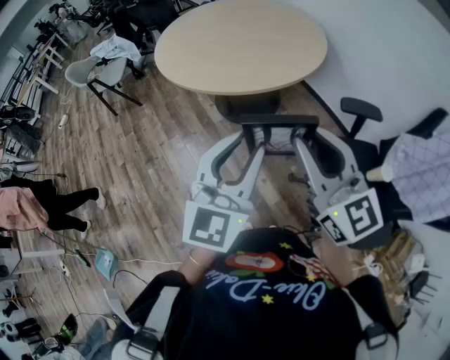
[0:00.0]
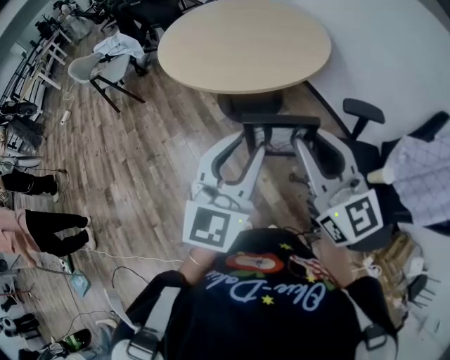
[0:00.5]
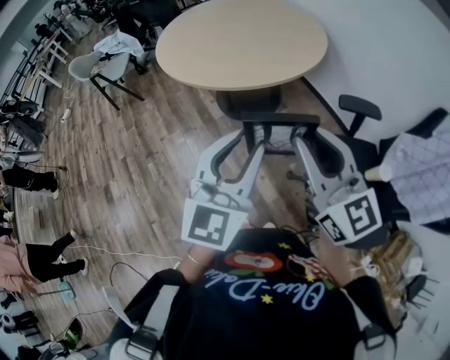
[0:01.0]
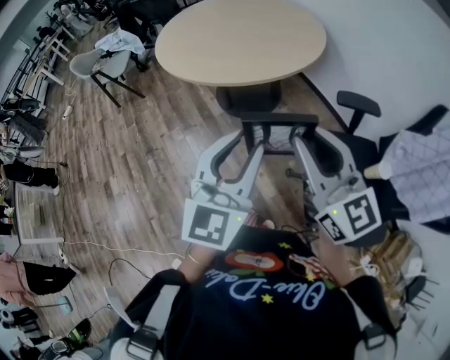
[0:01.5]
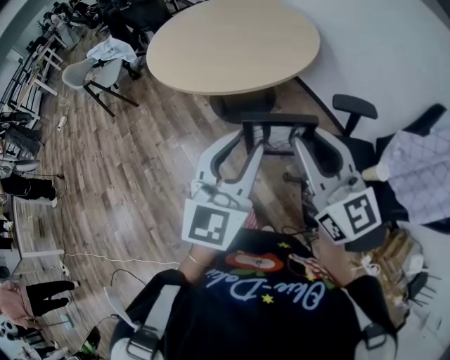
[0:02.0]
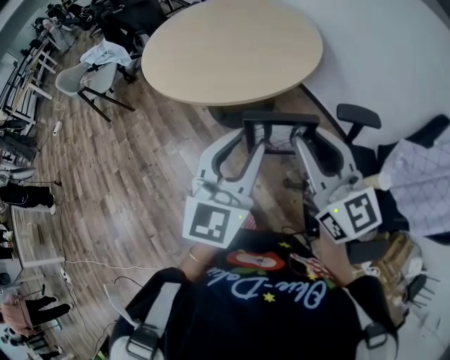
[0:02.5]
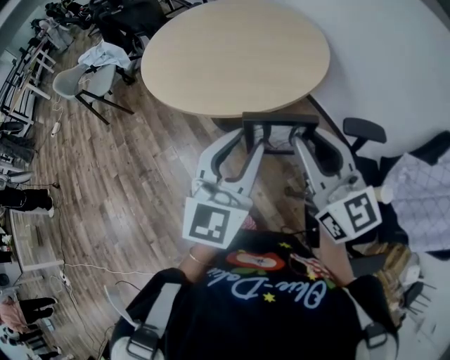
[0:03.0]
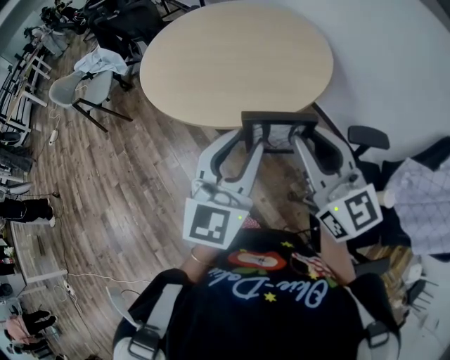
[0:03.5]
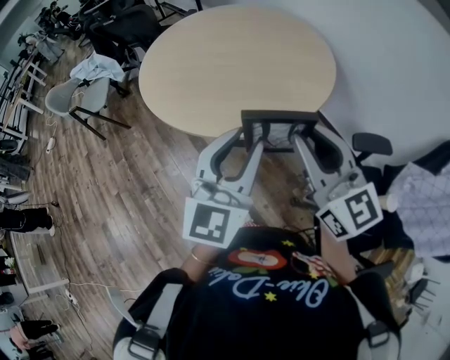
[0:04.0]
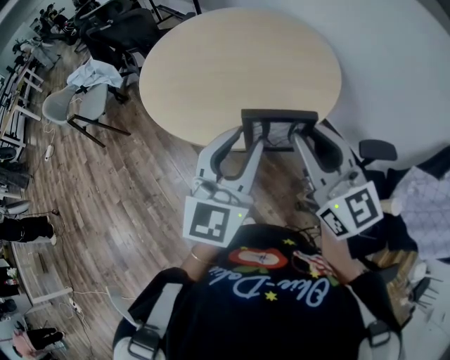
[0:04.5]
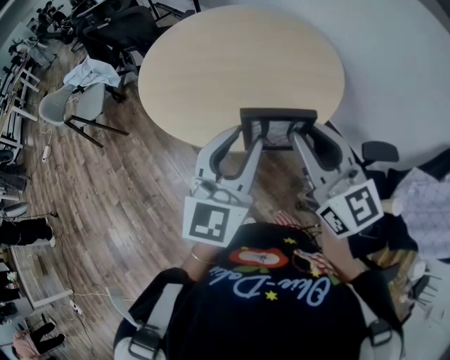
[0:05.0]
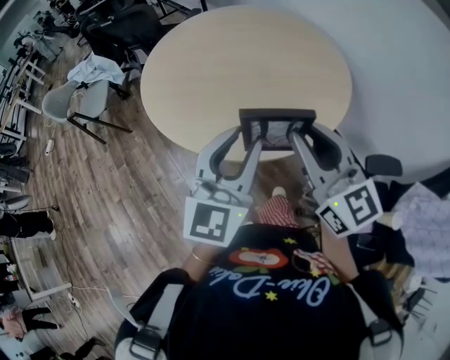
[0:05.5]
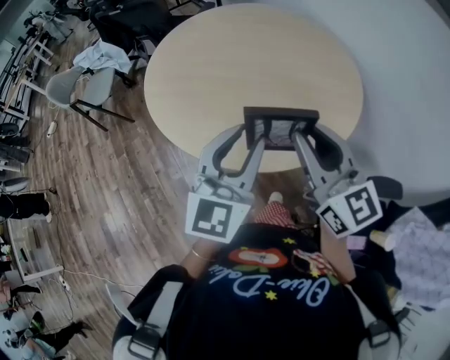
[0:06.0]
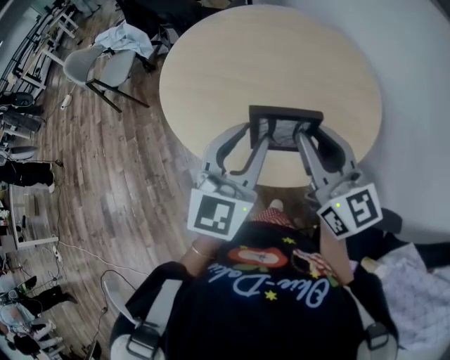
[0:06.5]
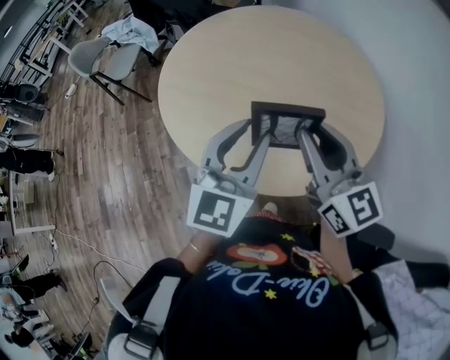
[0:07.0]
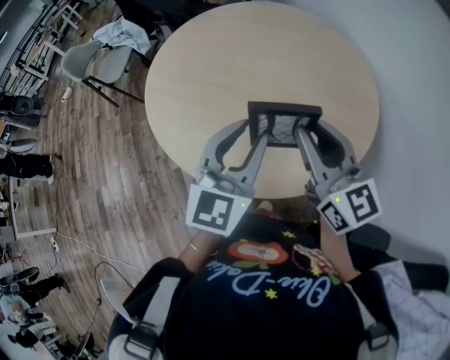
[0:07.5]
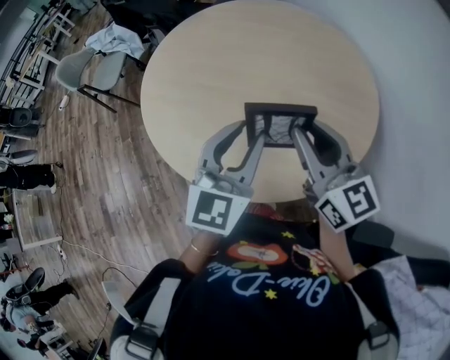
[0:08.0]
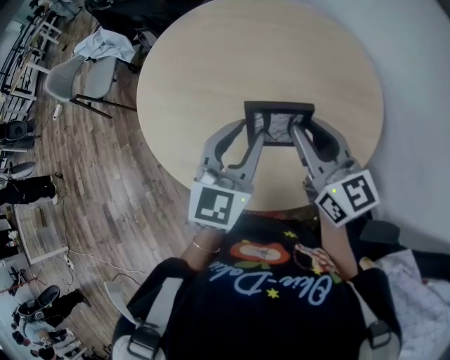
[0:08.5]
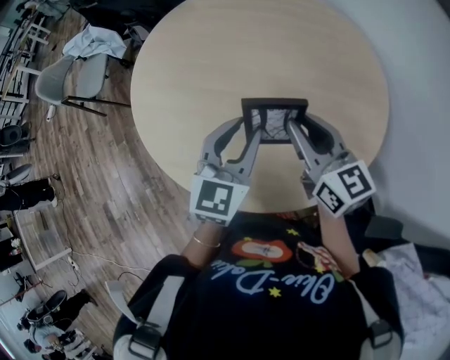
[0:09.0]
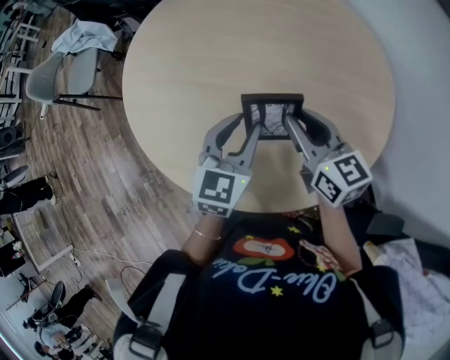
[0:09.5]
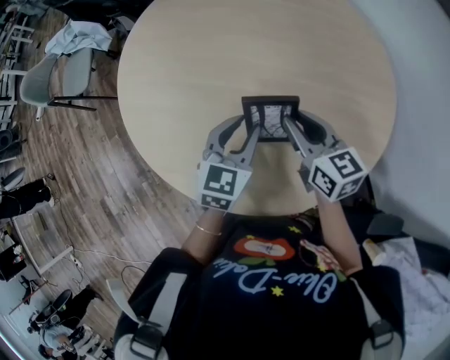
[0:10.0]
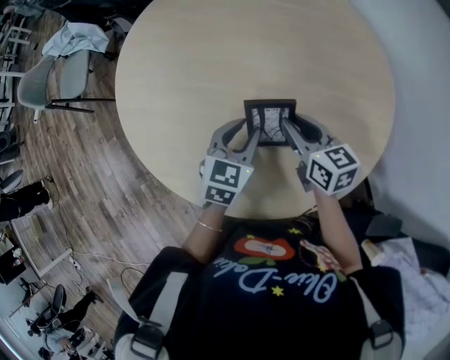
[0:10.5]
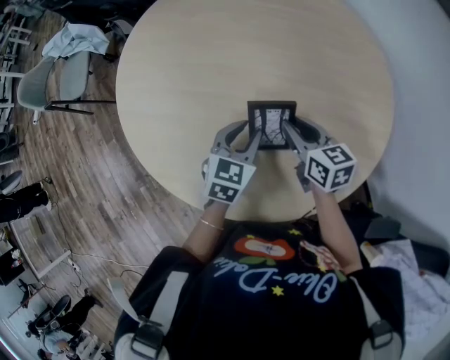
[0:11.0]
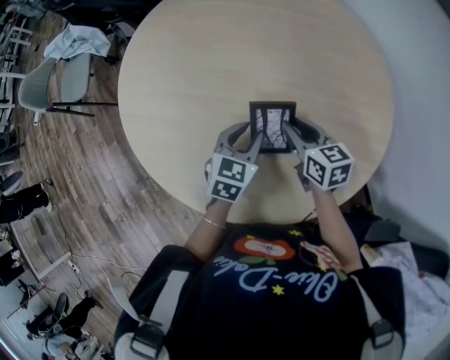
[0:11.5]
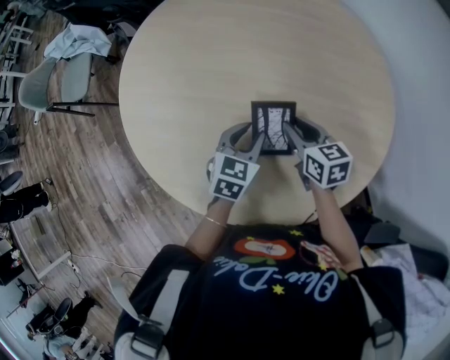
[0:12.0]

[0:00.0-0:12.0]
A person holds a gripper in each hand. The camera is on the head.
0:00.0 to 0:02.0: There are only small adjustments of the grippers.
0:02.0 to 0:04.0: The two grippers go approximately 20 cm forward and to the left.
0:04.0 to 0:06.0: Both grippers move forward, some 15 cm.
0:06.0 to 0:08.0: Both grippers travel together forward and to the right, roughly 15 cm.
0:08.0 to 0:10.0: Both grippers travel together downward and forward, roughly 20 cm. The right gripper rotates approximately 20 degrees; the left gripper turns by roughly 20 degrees.
0:10.0 to 0:12.0: The two grippers go roughly 10 cm downward.

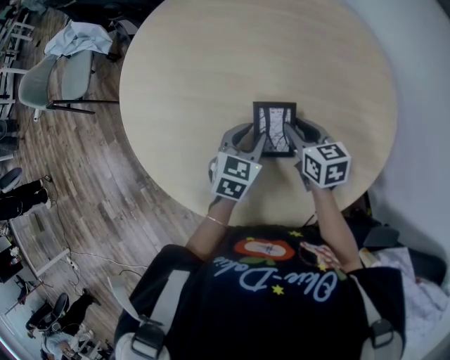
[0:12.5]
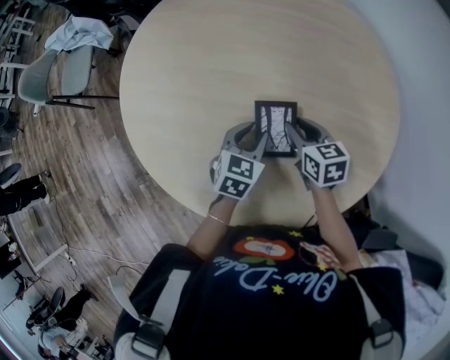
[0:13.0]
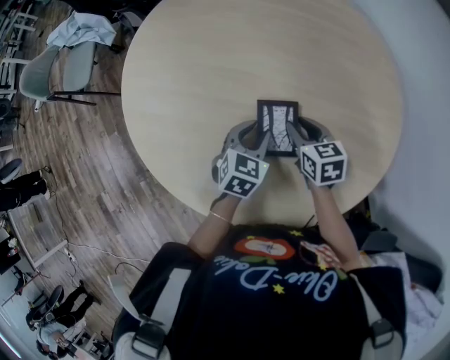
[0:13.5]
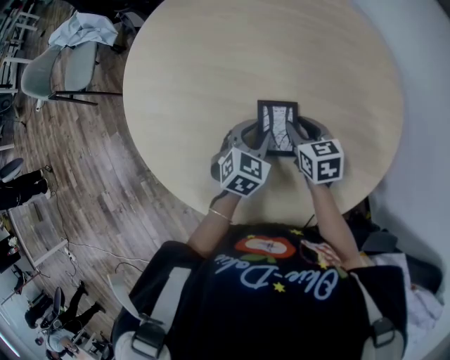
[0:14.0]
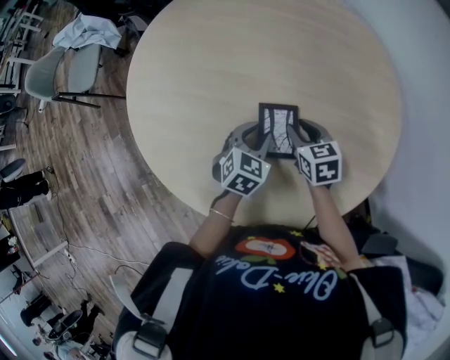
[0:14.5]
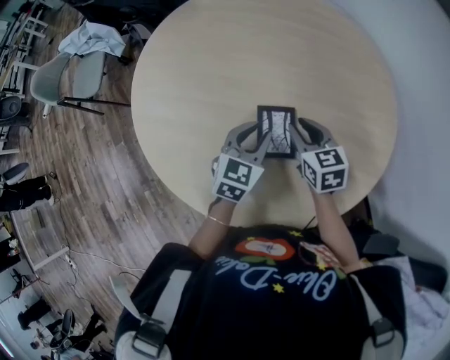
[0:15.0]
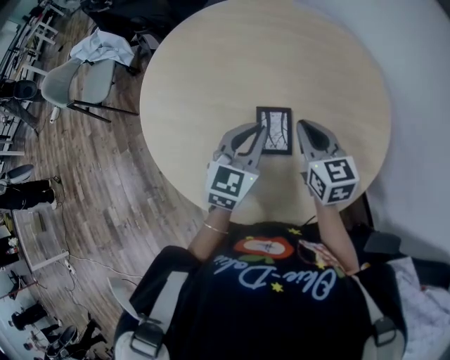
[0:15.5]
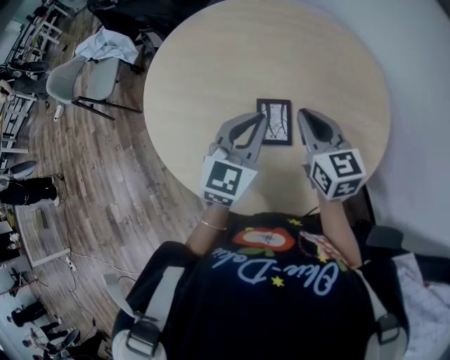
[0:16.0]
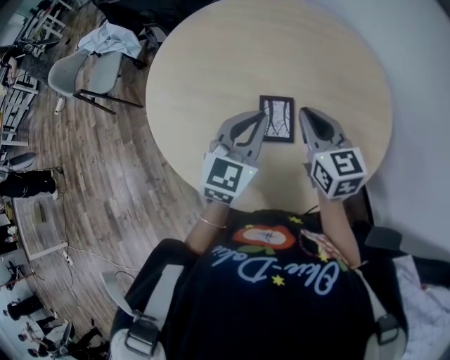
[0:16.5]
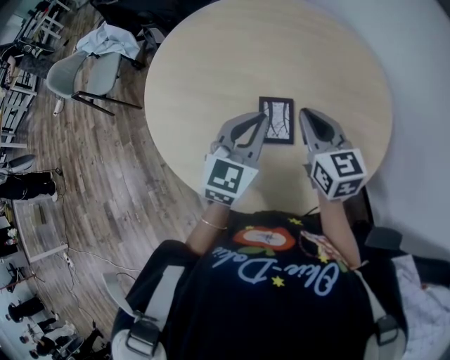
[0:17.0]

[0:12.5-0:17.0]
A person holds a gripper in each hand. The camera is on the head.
0:12.5 to 0:14.5: There are only small adjustments of the grippers.
0:14.5 to 0:17.0: Both grippers travel together upward, approximately 20 cm. The left gripper swivels some 30 degrees, and closes up, while the right gripper changes its angle by some 30 degrees, and closes up.

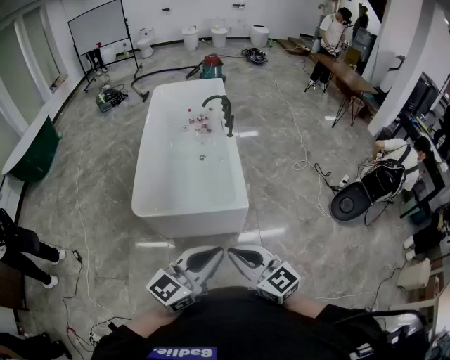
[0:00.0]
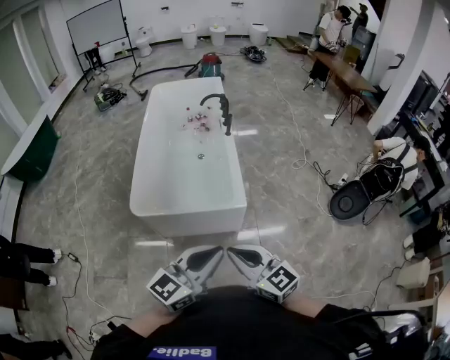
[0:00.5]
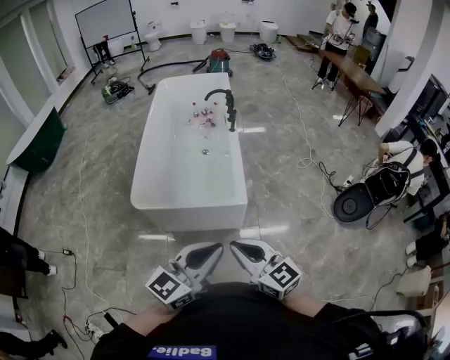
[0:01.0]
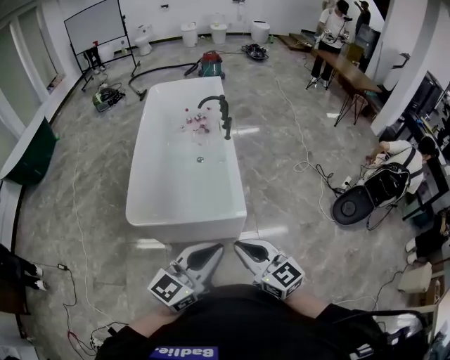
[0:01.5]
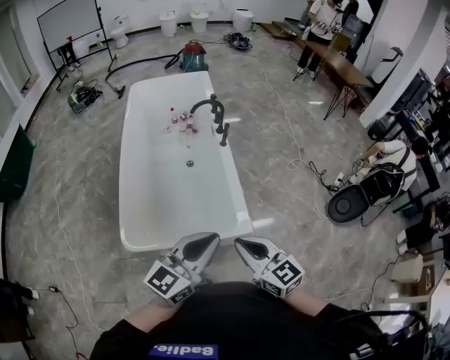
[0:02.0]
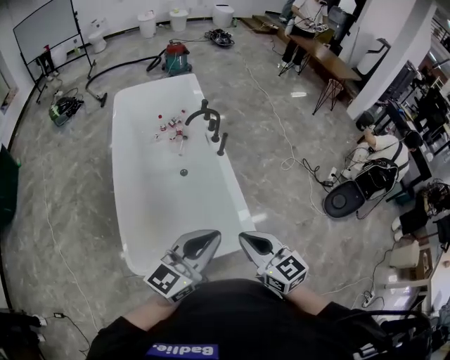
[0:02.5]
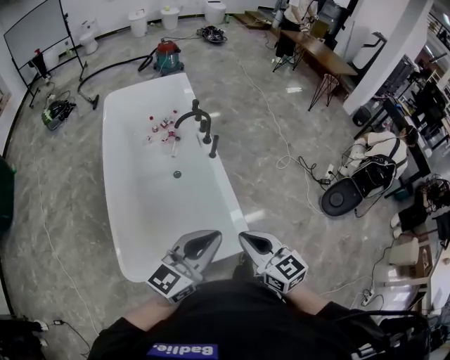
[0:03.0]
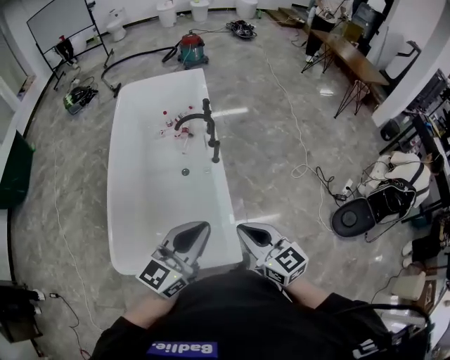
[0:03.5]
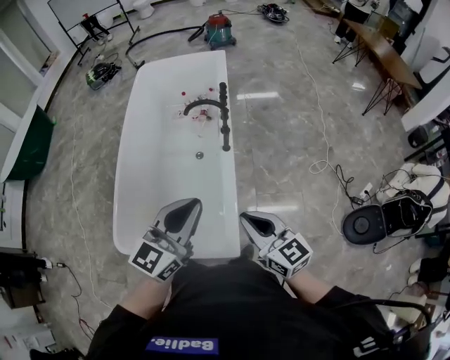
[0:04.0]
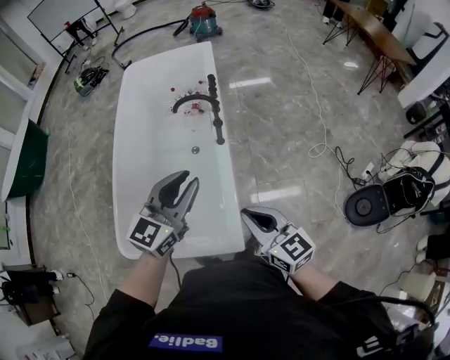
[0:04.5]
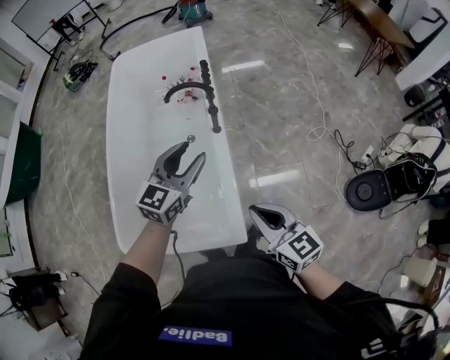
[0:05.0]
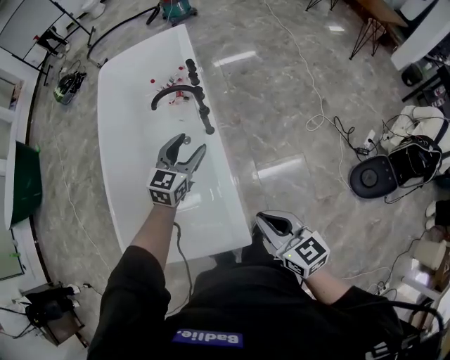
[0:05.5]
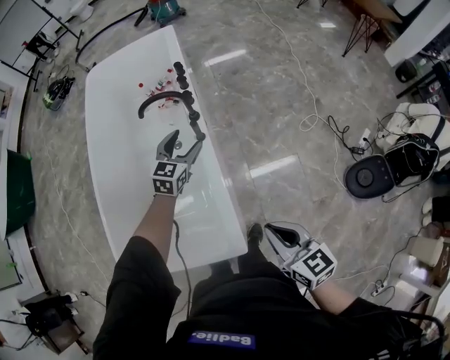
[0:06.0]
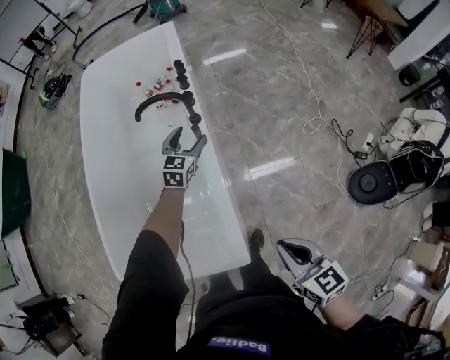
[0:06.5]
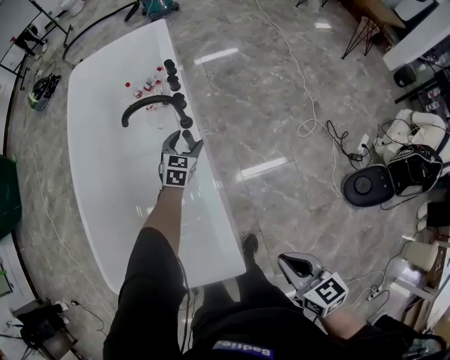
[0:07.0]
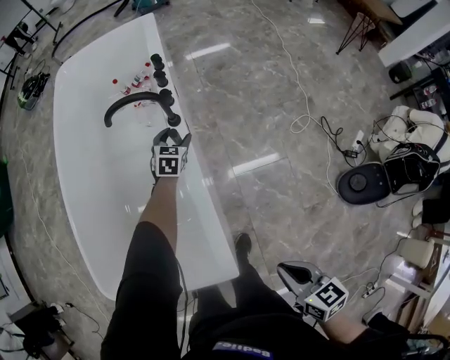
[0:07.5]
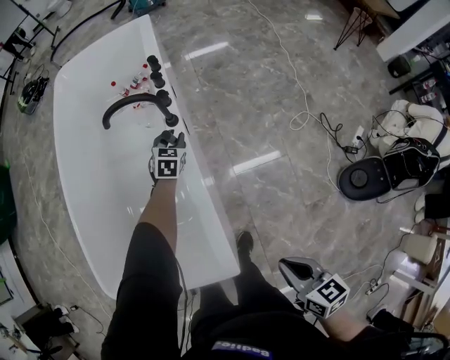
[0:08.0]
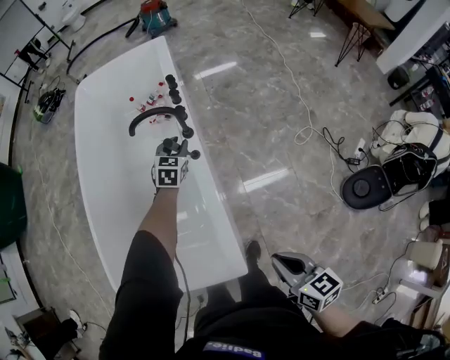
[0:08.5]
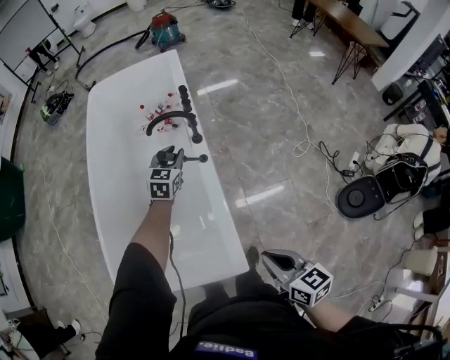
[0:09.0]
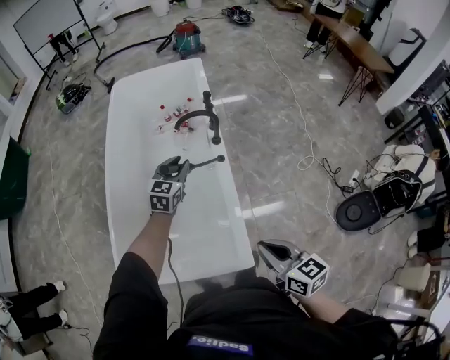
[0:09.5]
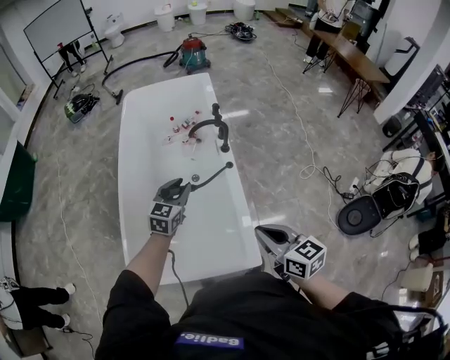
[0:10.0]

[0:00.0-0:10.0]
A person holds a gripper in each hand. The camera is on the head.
0:00.0 to 0:02.0: Both grippers travel together forward, approximately 30 cm.
0:02.0 to 0:04.0: The left gripper is displaced forward by some 30 cm, and turns by roughly 20 degrees; the right gripper is displaced forward and to the right by about 35 cm.
0:04.0 to 0:06.0: The right gripper travels downward and to the right by roughly 15 cm, and turns by roughly 20 degrees. The left gripper shifts approximately 40 cm forward and downward, changes its angle by about 20 degrees, and opens its fingers.
0:06.0 to 0:08.0: The left gripper heads downward and forward, covering some 25 cm, and closes its fingers, while the right gripper heads downward and to the right, covering about 15 cm.
0:08.0 to 0:10.0: The right gripper shifts roughly 35 cm to the left and upward, and changes its angle by approximately 20 degrees. The left gripper is displaced upward, to the left and backward by about 50 cm, and rotates some 20 degrees.
